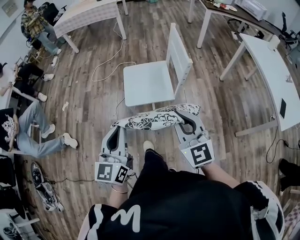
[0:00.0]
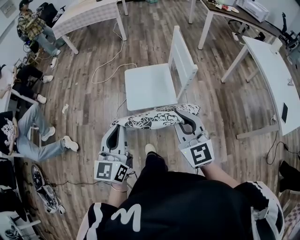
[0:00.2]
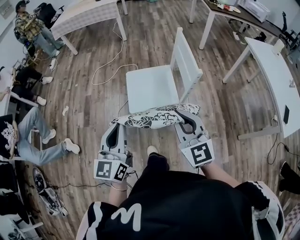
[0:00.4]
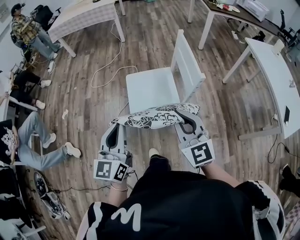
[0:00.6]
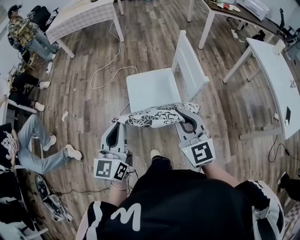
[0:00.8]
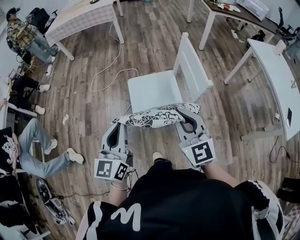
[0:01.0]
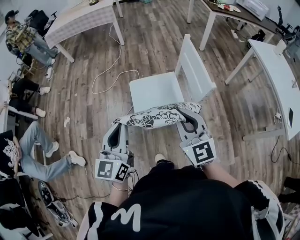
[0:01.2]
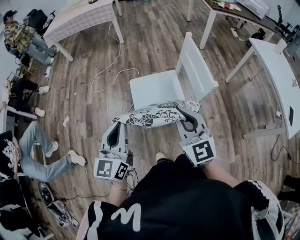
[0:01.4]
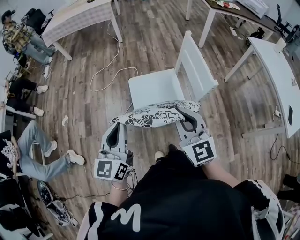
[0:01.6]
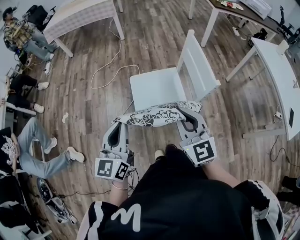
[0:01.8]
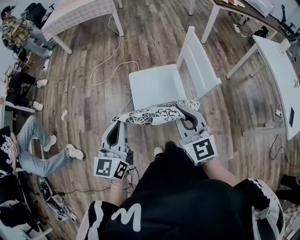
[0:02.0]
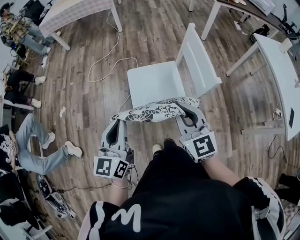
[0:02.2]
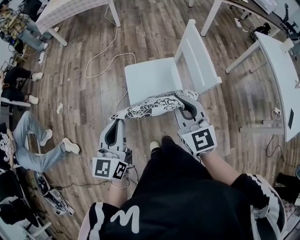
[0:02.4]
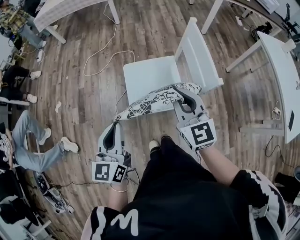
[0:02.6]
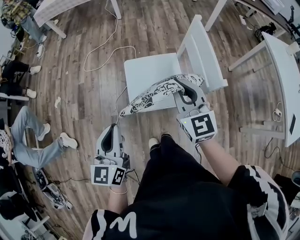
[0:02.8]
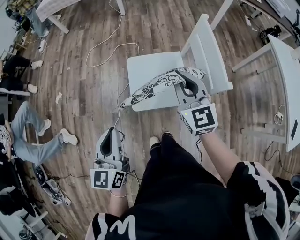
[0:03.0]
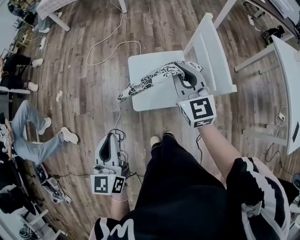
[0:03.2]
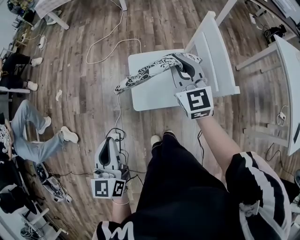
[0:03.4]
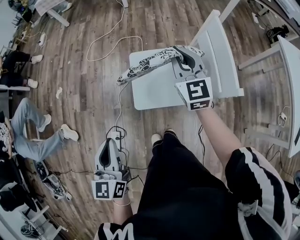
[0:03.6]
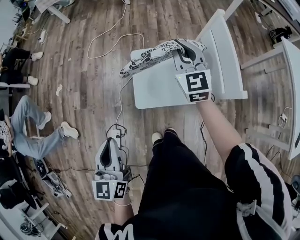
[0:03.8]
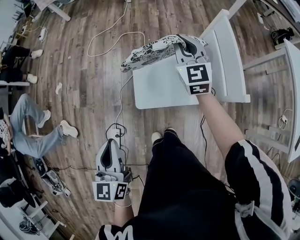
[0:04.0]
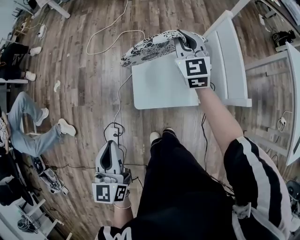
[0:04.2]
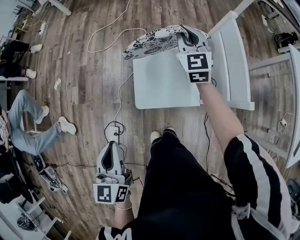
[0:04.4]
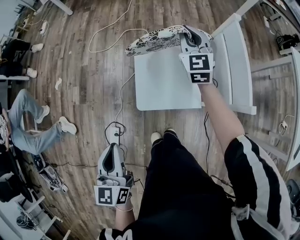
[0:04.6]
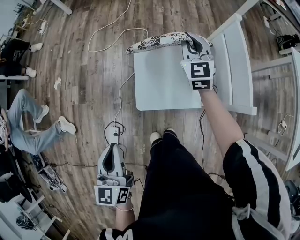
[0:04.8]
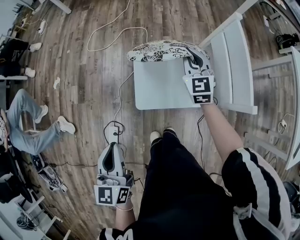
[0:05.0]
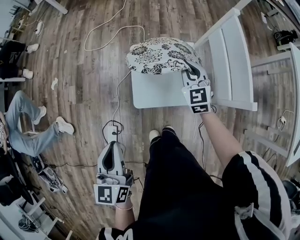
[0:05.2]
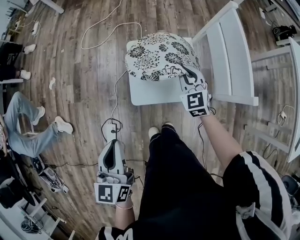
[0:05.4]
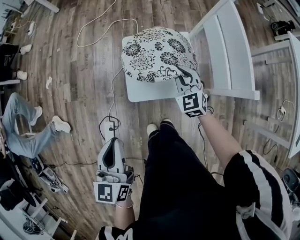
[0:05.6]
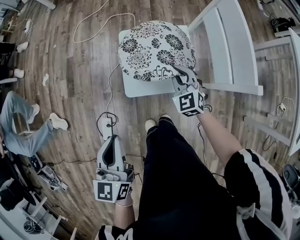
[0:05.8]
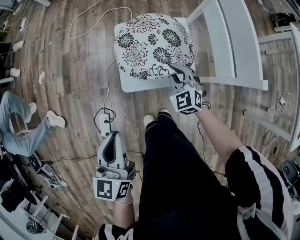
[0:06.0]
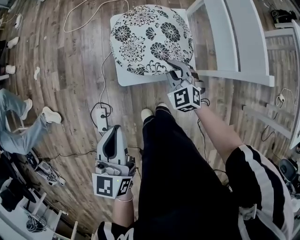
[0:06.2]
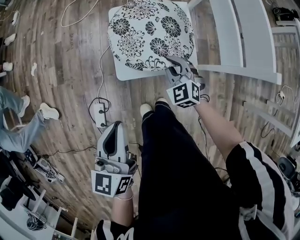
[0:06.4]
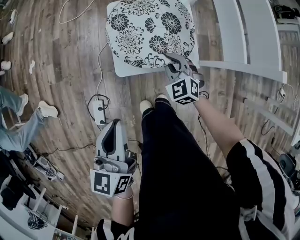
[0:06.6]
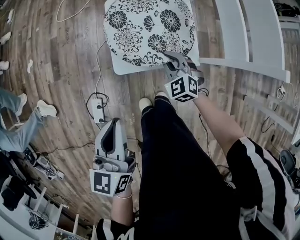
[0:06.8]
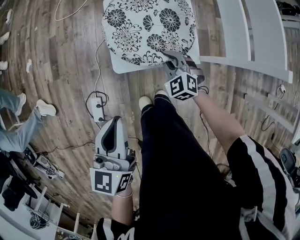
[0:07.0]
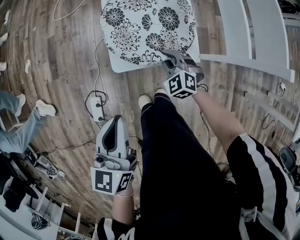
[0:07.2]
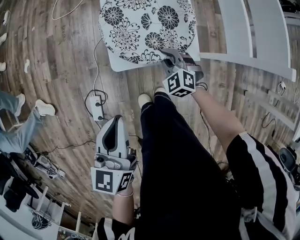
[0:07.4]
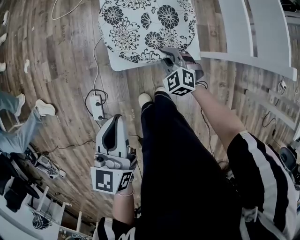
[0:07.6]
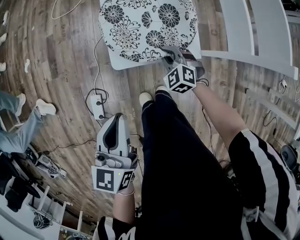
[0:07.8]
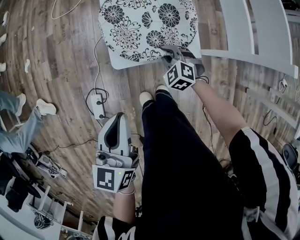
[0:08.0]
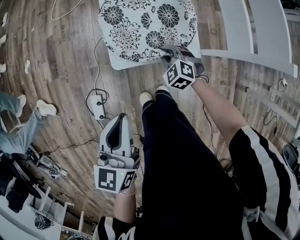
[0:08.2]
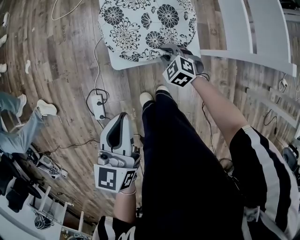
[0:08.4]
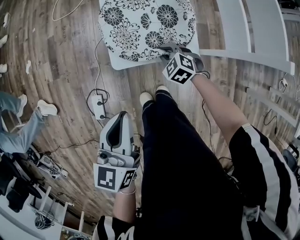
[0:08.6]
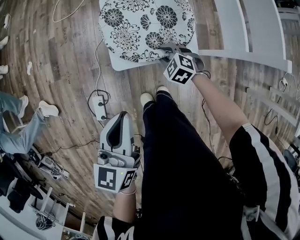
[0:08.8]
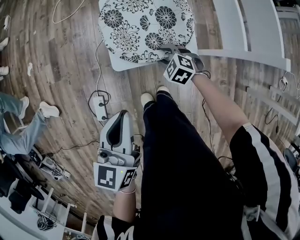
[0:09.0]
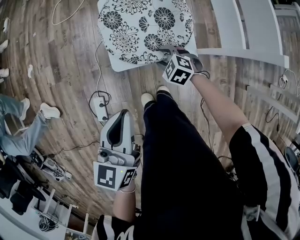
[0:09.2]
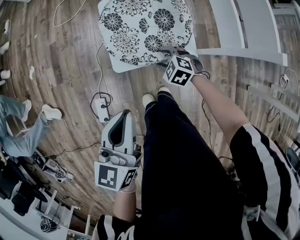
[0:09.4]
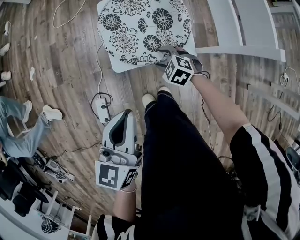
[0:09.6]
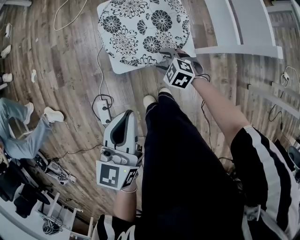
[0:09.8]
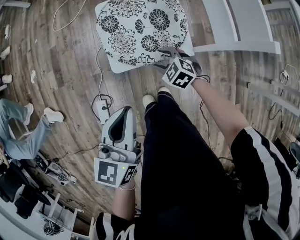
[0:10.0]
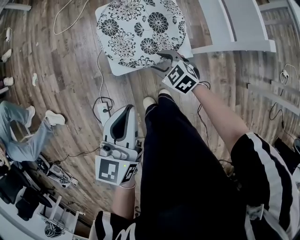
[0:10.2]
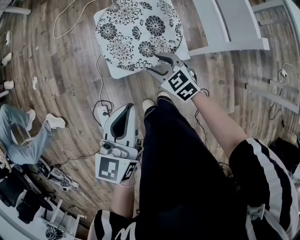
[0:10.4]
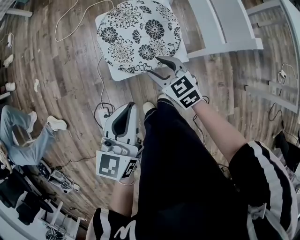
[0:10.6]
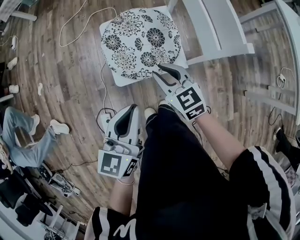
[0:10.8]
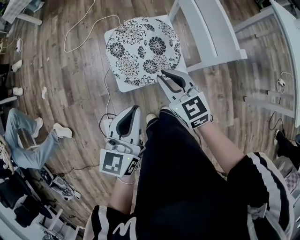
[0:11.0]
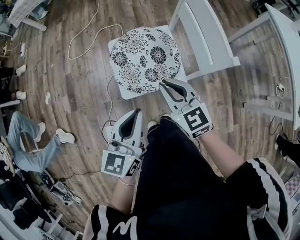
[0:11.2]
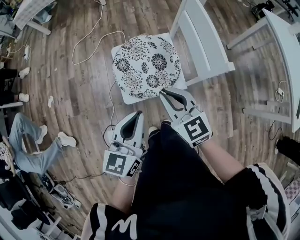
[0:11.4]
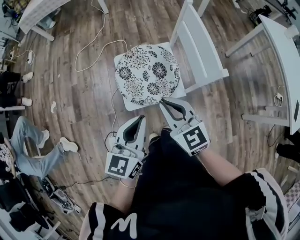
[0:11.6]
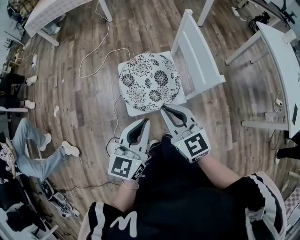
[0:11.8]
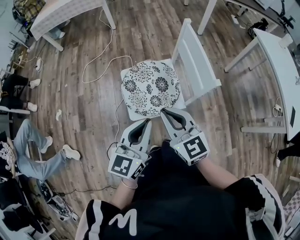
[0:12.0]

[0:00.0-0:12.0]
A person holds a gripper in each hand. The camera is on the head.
0:00.0 to 0:01.6: Both grippers travel together forward and to the left, about 20 cm.
0:01.6 to 0:03.0: The right gripper moves forward, some 15 cm, while the left gripper goes approximately 5 cm downward.
0:03.0 to 0:04.4: The right gripper travels forward by roughly 20 cm.
0:04.4 to 0:06.0: The left gripper is displaced downward by some 5 cm. The right gripper is displaced downward and backward by about 30 cm, and swivels some 30 degrees.
0:06.0 to 0:07.6: The right gripper is displaced downward by approximately 15 cm. Meanwhile the left gripper heads downward, covering about 5 cm.
0:07.6 to 0:09.0: The right gripper turns by some 20 degrees, and opens.
0:09.0 to 0:10.4: The right gripper goes roughly 10 cm upward, and changes its angle by roughly 30 degrees.
0:10.4 to 0:12.0: The left gripper shifts some 15 cm upward; the right gripper heads upward, covering some 30 cm, changes its angle by some 30 degrees, and closes.

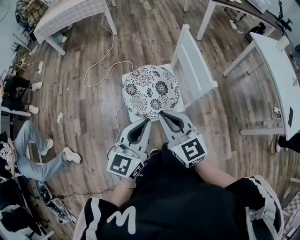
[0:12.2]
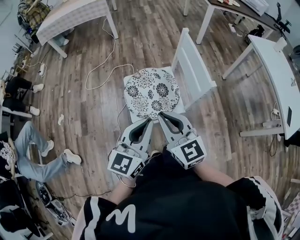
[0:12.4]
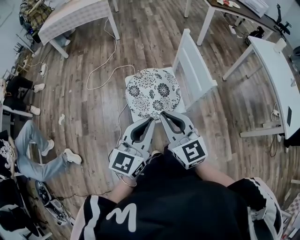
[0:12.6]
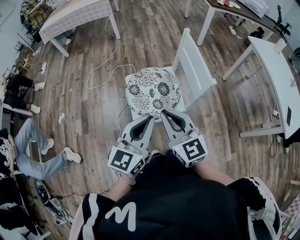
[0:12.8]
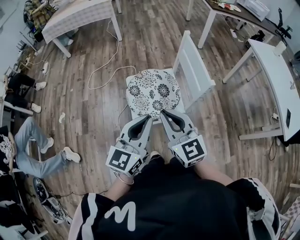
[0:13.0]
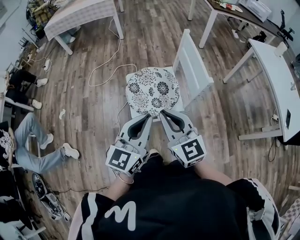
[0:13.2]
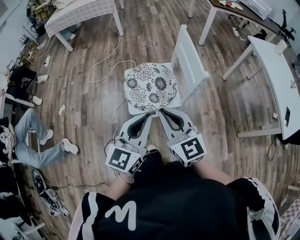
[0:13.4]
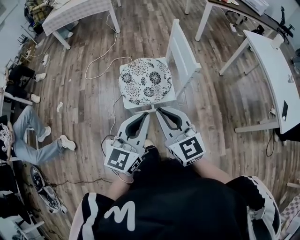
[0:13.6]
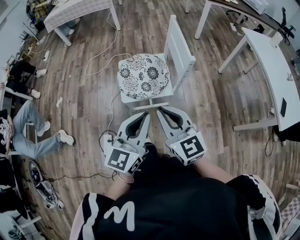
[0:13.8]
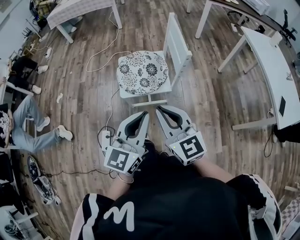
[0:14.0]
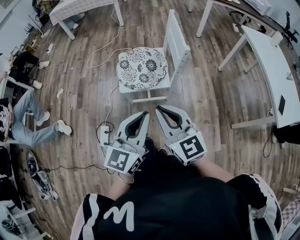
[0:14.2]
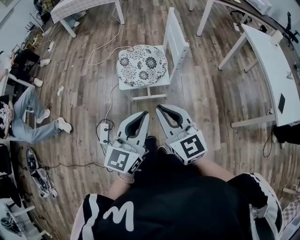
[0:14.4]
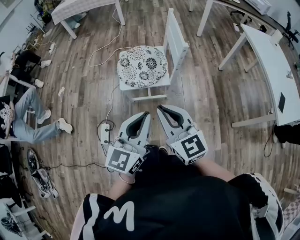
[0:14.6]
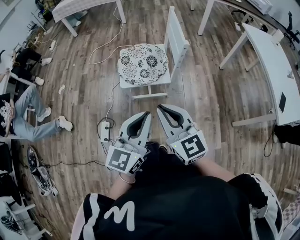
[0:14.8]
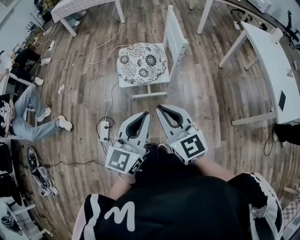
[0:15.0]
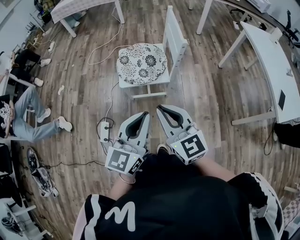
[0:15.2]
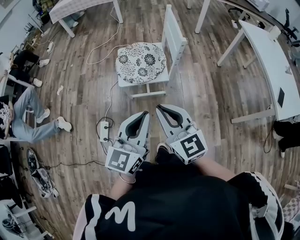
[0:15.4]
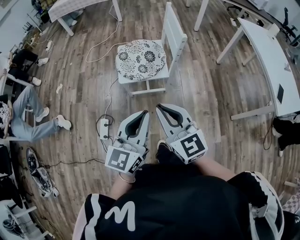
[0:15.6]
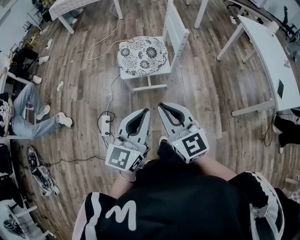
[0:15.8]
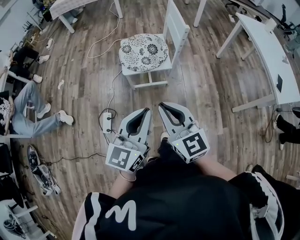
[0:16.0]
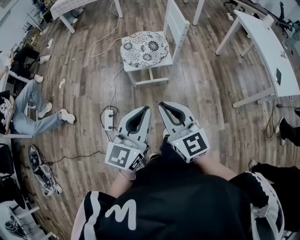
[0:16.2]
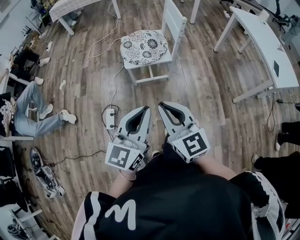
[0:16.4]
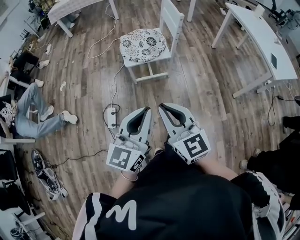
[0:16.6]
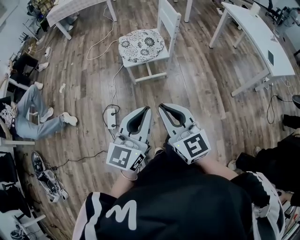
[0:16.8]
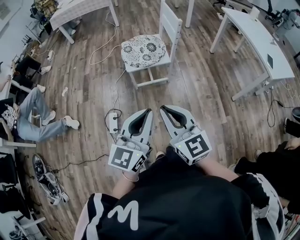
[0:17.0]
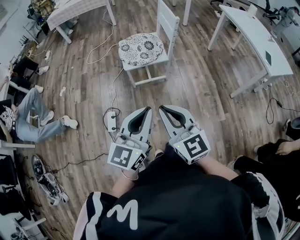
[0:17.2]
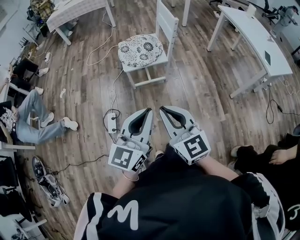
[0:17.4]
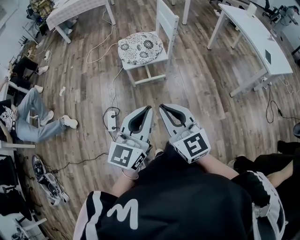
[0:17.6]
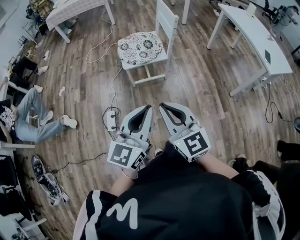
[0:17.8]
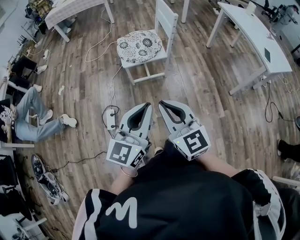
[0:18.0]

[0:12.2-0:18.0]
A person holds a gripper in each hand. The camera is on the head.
0:12.2 to 0:13.6: The left gripper moves backward and to the right, roughly 10 cm, while the right gripper goes about 10 cm backward.
0:13.6 to 0:15.0: The grippers both shift backward by roughly 15 cm.
0:15.0 to 0:16.6: The two grippers go roughly 20 cm backward and to the left.
0:16.6 to 0:18.0: The grippers stay close to where they were, moving slightly.

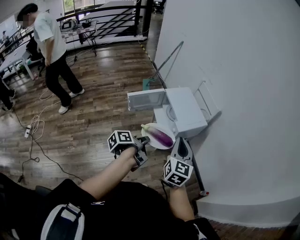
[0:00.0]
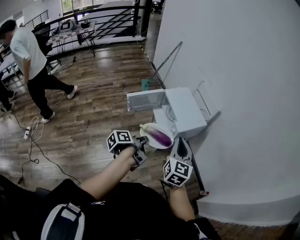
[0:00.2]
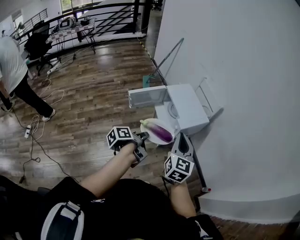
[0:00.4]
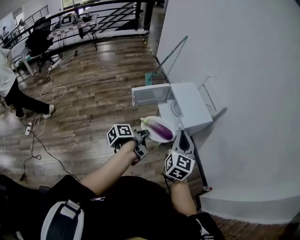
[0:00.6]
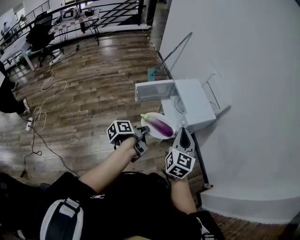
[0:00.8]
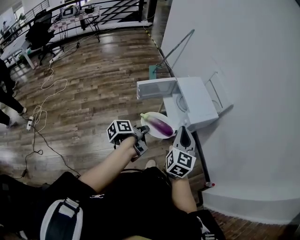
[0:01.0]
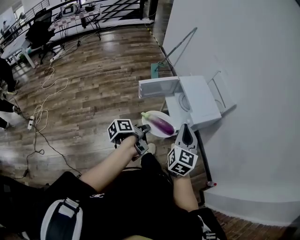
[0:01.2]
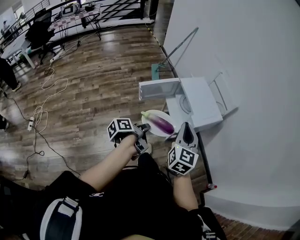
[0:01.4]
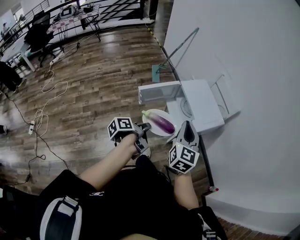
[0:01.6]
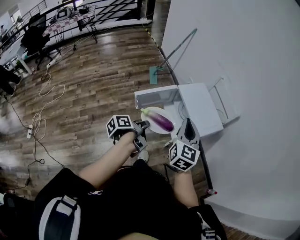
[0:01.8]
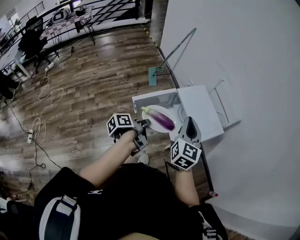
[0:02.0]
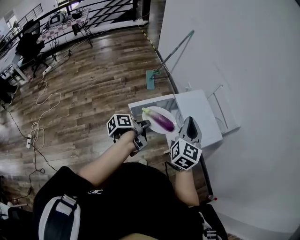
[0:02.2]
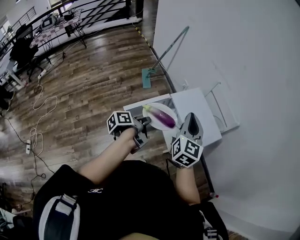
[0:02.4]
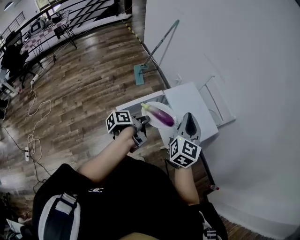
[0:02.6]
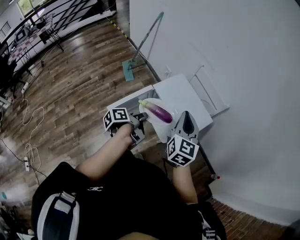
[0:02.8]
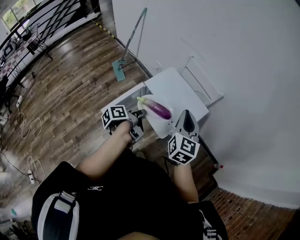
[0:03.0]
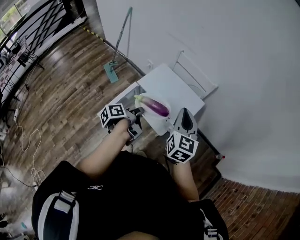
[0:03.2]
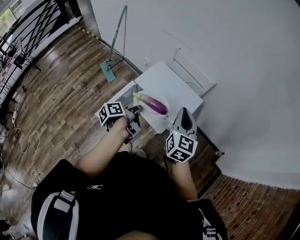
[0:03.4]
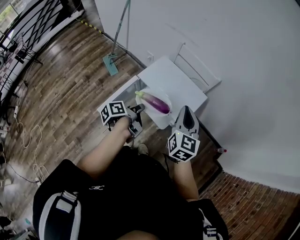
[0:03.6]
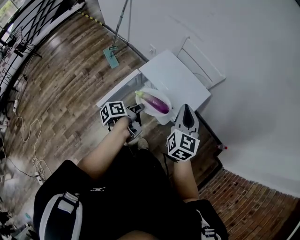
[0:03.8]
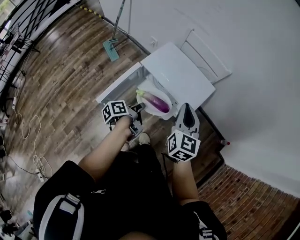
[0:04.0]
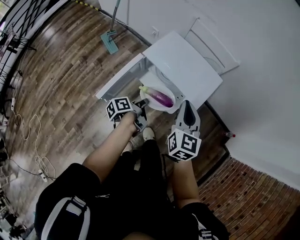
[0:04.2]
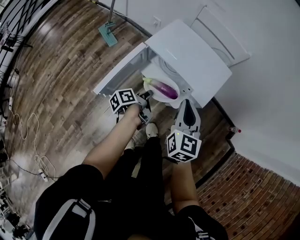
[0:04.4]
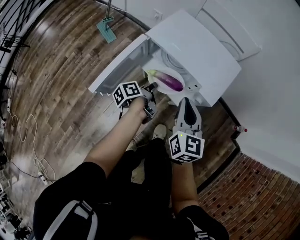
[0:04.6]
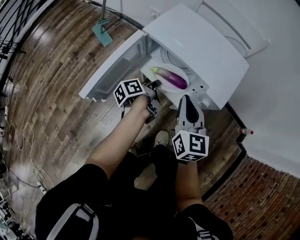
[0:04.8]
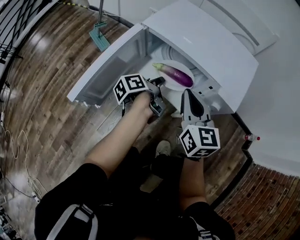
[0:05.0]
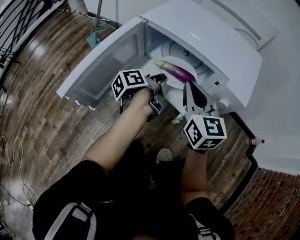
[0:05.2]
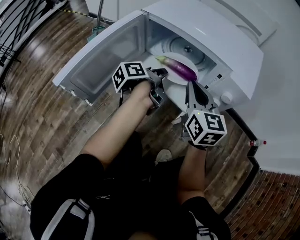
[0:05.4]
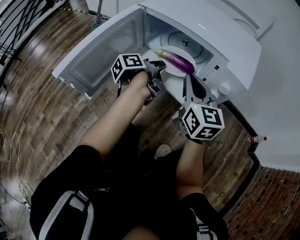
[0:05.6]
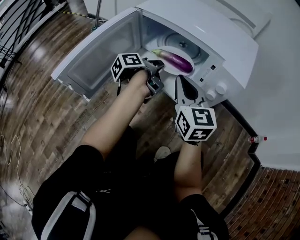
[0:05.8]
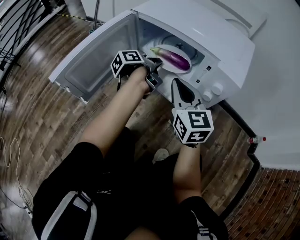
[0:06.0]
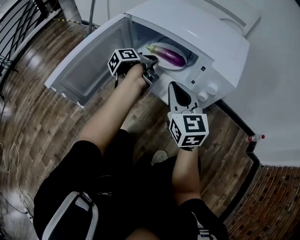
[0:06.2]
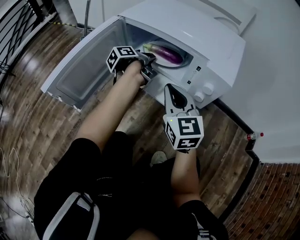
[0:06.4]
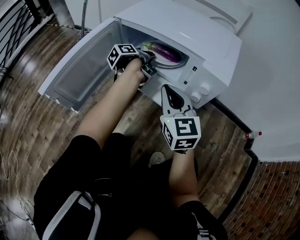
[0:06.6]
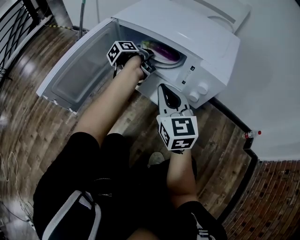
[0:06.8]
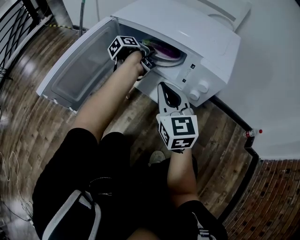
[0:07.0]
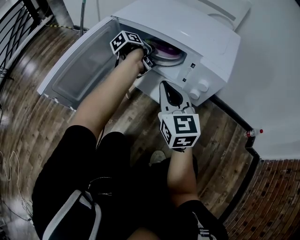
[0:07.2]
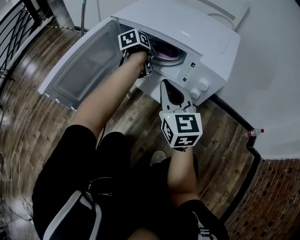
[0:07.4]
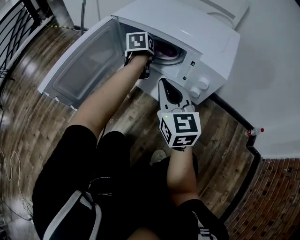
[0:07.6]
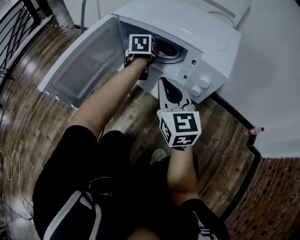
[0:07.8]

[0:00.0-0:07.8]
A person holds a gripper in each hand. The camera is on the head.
0:00.0 to 0:01.6: The two grippers go roughly 15 cm to the left and forward.
0:01.6 to 0:03.2: The left gripper shifts by roughly 25 cm, and rotates some 30 degrees. Meanwhile the right gripper shifts by about 20 cm, and turns by roughly 30 degrees.
0:03.2 to 0:04.6: The two grippers go about 25 cm downward.
0:04.6 to 0:06.2: The right gripper goes roughly 20 cm downward, while the left gripper heads forward and downward, covering some 20 cm.
0:06.2 to 0:07.8: The left gripper goes about 5 cm forward, rolls clockwise, seen from behind, by some 60 degrees, and opens up.
